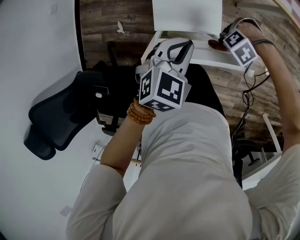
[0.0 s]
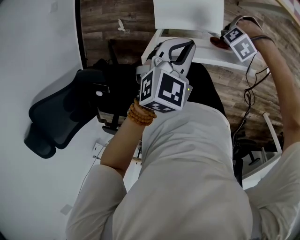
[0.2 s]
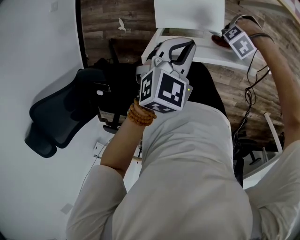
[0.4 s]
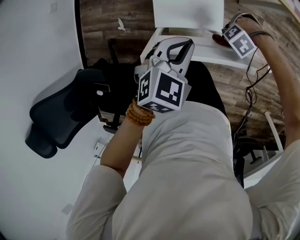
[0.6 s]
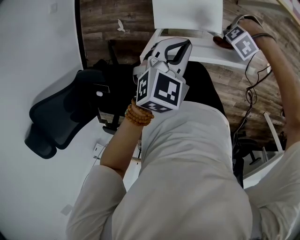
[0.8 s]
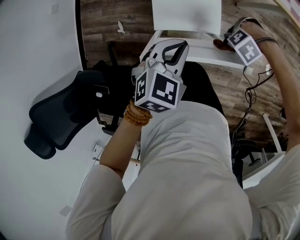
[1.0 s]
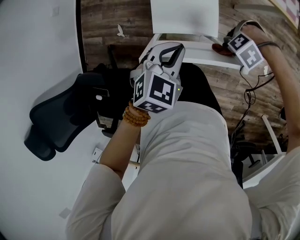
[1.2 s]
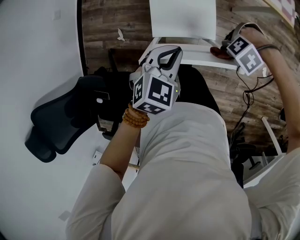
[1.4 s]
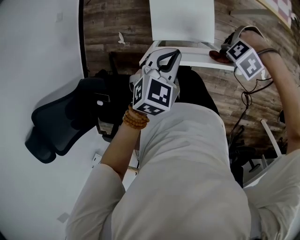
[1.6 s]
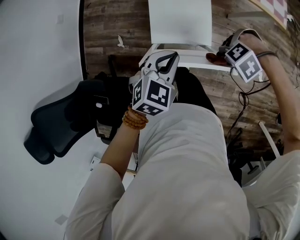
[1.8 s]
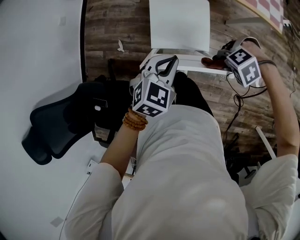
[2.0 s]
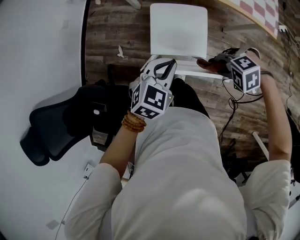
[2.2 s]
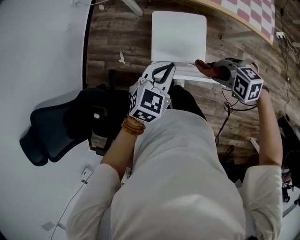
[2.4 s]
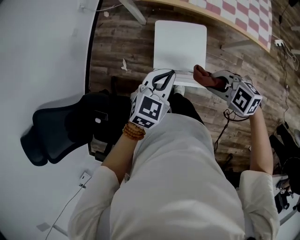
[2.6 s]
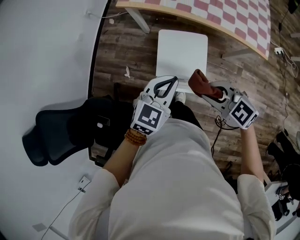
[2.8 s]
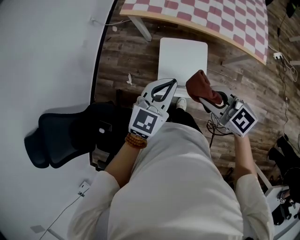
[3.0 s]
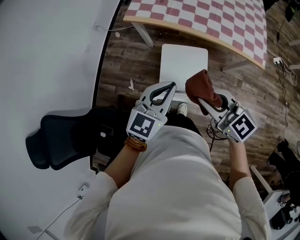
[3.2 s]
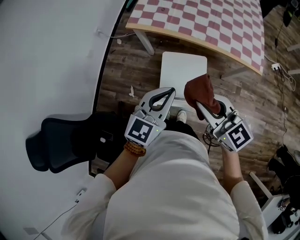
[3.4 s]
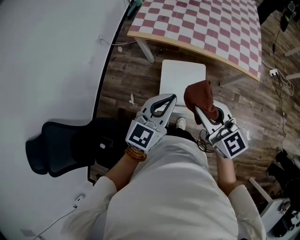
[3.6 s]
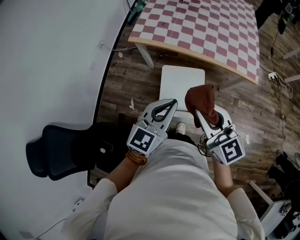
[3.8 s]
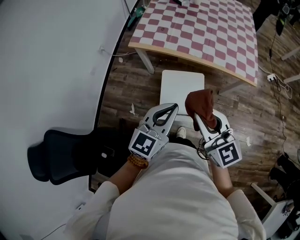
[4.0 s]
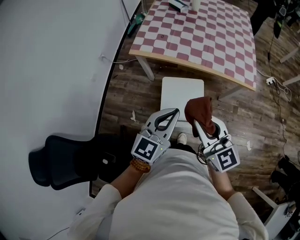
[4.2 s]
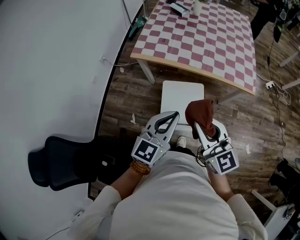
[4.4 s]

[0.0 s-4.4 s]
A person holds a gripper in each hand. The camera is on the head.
0.0 to 1.4 s: The right gripper is displaced upward by roughly 5 cm.
1.4 to 3.0 s: The left gripper is displaced upward by some 20 cm, and rotates approximately 30 degrees; the right gripper heads upward, covering roughly 30 cm, and angles its fingers upward, by some 40 degrees.
3.0 to 4.4 s: The grippers both shift upward by some 10 cm. The right gripper changes its angle by about 40 degrees.

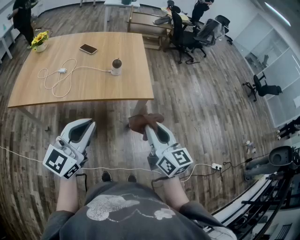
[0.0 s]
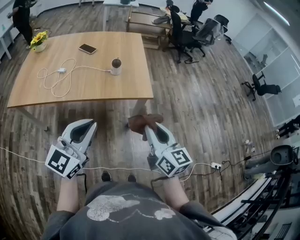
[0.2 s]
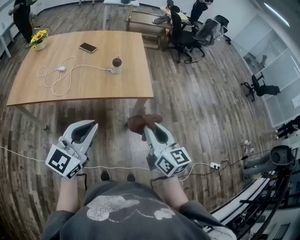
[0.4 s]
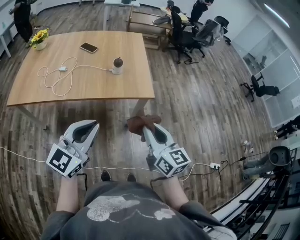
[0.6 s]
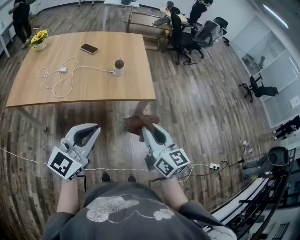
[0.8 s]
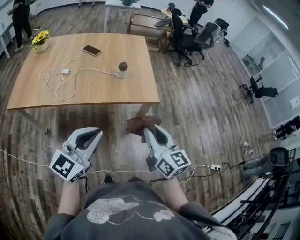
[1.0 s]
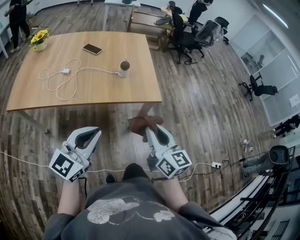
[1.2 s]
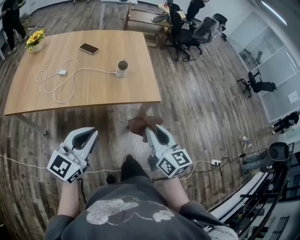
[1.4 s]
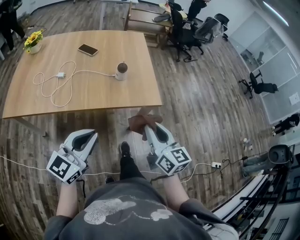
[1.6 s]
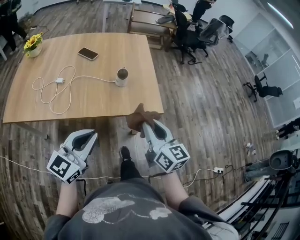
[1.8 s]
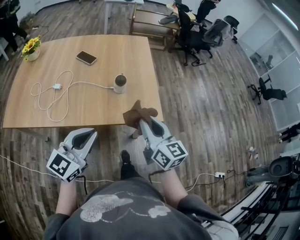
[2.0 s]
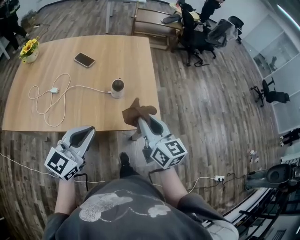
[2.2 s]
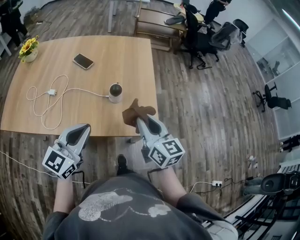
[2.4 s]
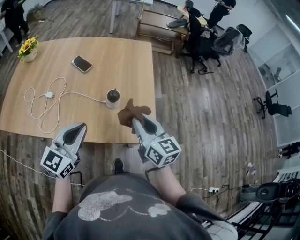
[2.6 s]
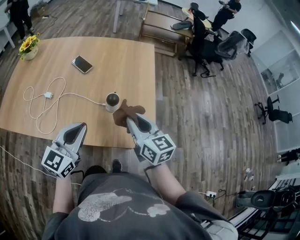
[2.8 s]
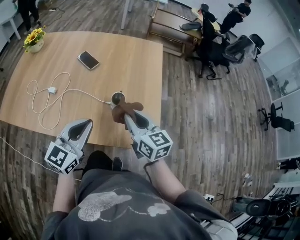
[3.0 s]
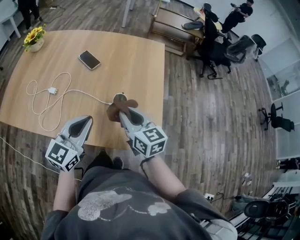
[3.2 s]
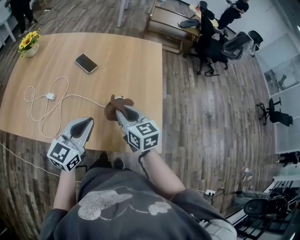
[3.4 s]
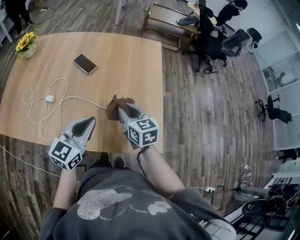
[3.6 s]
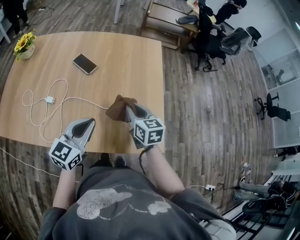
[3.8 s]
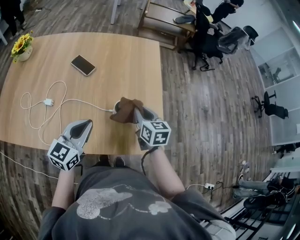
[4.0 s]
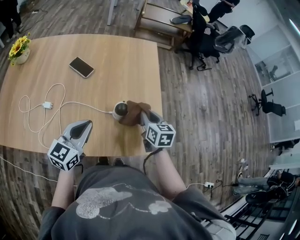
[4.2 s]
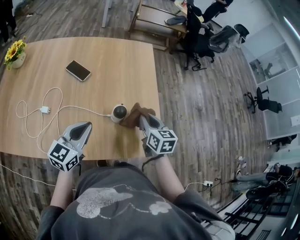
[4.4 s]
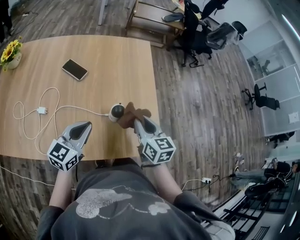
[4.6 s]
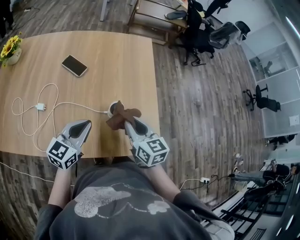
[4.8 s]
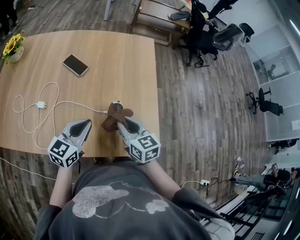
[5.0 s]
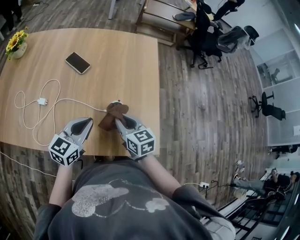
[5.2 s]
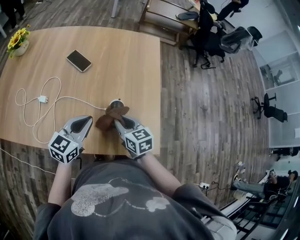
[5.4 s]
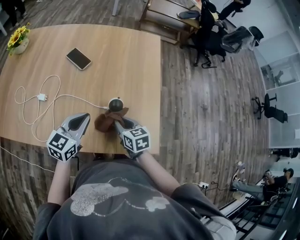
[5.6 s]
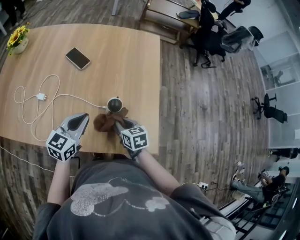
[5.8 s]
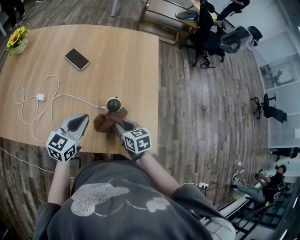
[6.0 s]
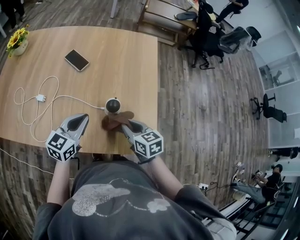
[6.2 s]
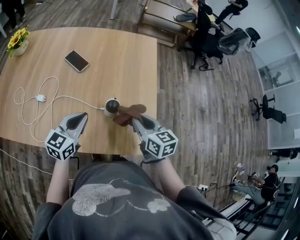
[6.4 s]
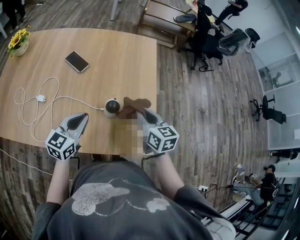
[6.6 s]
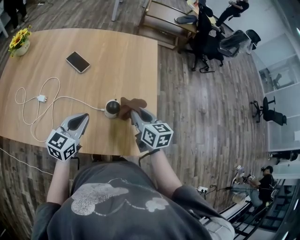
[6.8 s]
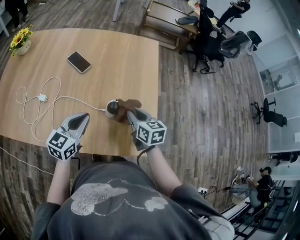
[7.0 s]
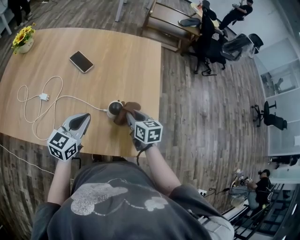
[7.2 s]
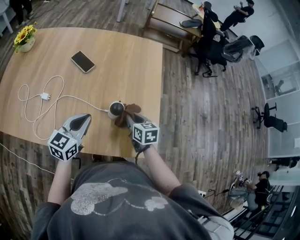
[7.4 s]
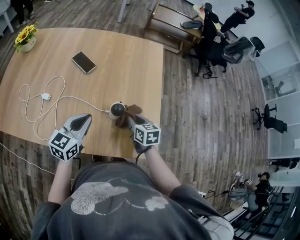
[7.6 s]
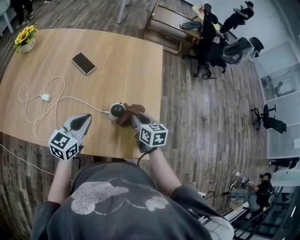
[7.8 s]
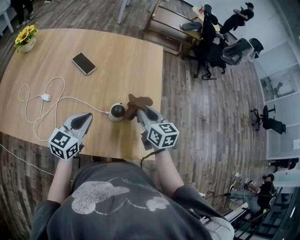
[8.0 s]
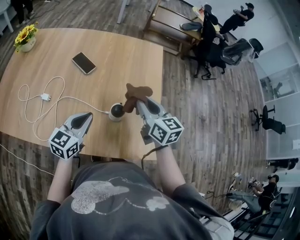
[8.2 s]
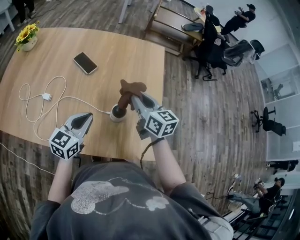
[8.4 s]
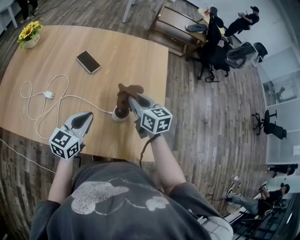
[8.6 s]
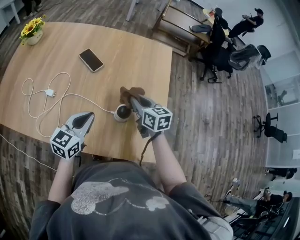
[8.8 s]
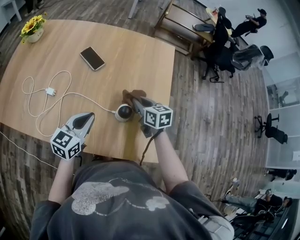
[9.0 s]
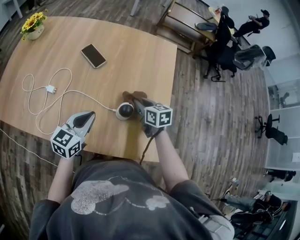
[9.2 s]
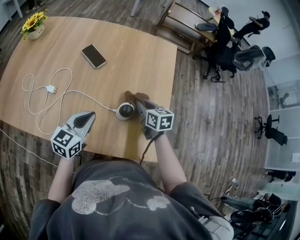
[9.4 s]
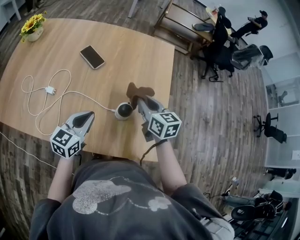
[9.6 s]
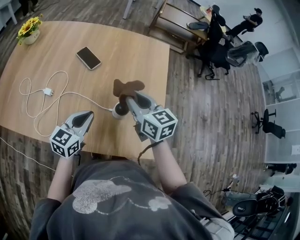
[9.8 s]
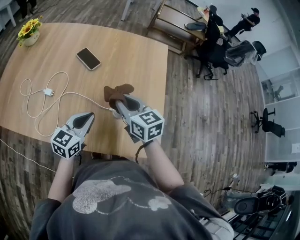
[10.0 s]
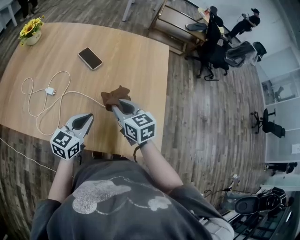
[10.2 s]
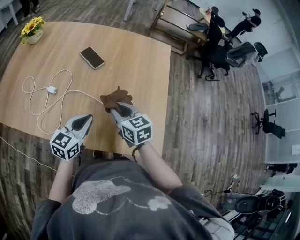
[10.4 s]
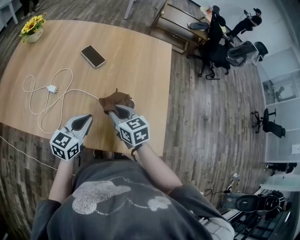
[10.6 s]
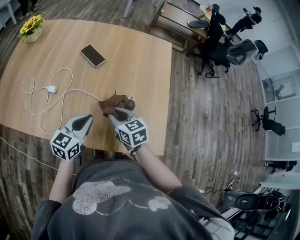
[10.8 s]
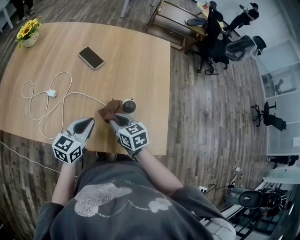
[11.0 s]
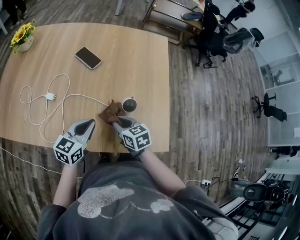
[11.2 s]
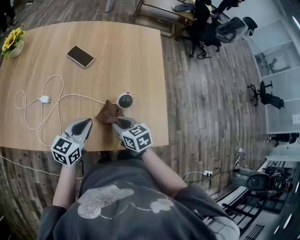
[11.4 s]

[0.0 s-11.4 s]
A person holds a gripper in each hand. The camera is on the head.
0.0 to 1.4 s: The two grippers go some 5 cm to the left.
1.4 to 2.8 s: Both grippers travel together forward, about 30 cm.
2.8 to 4.2 s: The left gripper moves forward and downward, some 10 cm; the right gripper goes about 15 cm downward and forward, travels to the left and back again, some 10 cm each way, and turns by some 30 degrees.
4.2 to 5.6 s: The right gripper shifts about 10 cm to the left, downward and backward, and rotates some 20 degrees.
5.6 to 7.2 s: The right gripper is displaced forward and to the right by about 5 cm, and travels upward and back again, some 10 cm each way.
7.2 to 8.6 s: The right gripper goes roughly 10 cm upward and forward.
8.6 to 10.0 s: The right gripper shifts some 5 cm to the left, and reaches roughly 10 cm downward, then returns.
10.0 to 11.4 s: The left gripper changes place by about 5 cm; the right gripper shifts about 15 cm downward and backward.

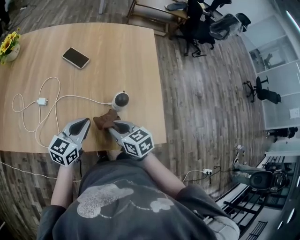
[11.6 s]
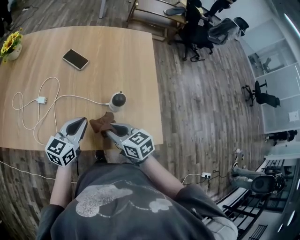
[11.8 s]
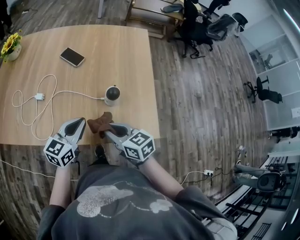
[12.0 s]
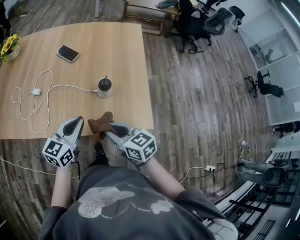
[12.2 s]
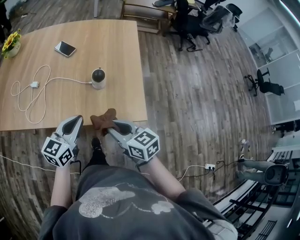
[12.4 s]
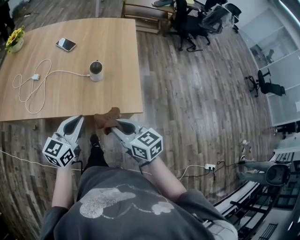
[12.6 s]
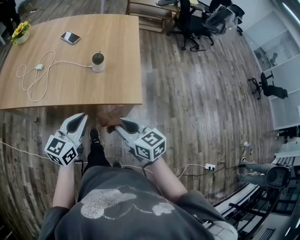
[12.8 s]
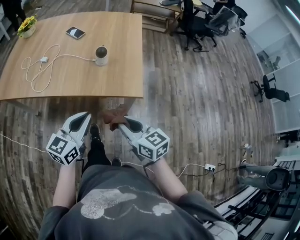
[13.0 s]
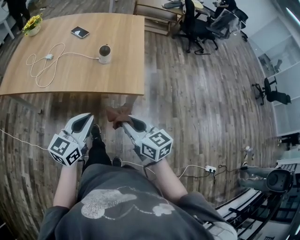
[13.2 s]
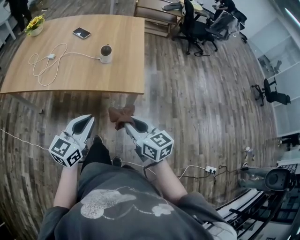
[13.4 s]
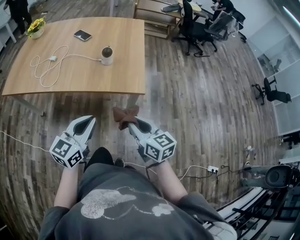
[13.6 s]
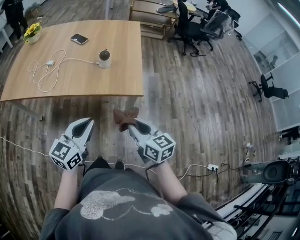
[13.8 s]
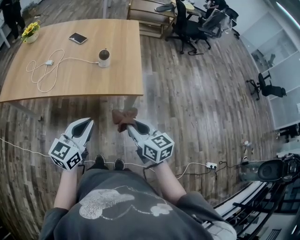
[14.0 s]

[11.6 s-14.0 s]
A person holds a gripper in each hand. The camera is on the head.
11.6 to 12.8 s: Both grippers move backward and to the right, some 25 cm.
12.8 to 14.0 s: Both grippers move backward, roughly 10 cm.

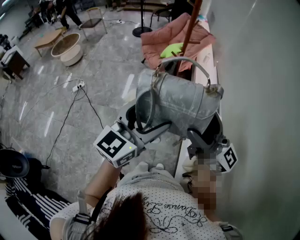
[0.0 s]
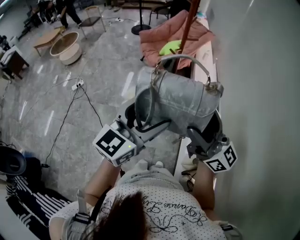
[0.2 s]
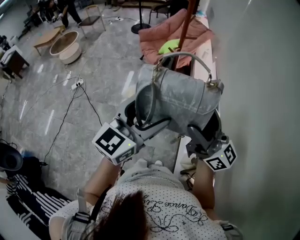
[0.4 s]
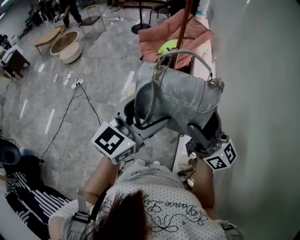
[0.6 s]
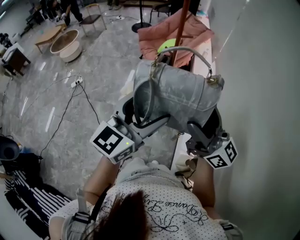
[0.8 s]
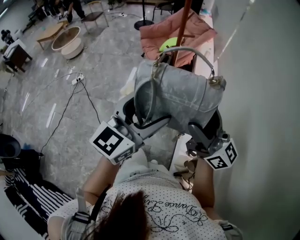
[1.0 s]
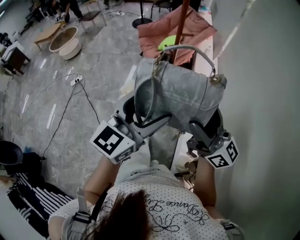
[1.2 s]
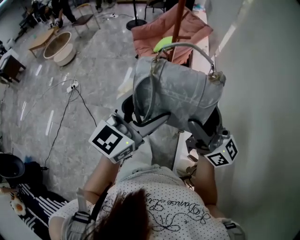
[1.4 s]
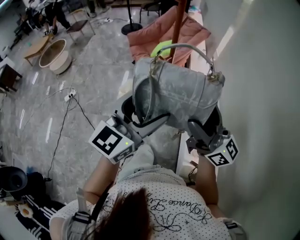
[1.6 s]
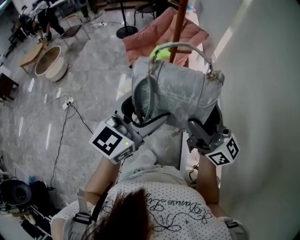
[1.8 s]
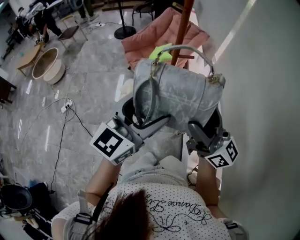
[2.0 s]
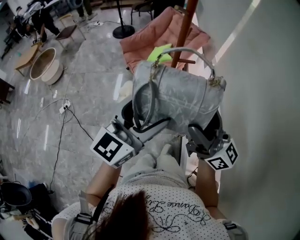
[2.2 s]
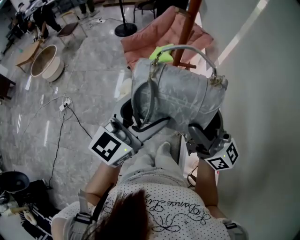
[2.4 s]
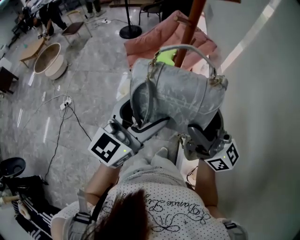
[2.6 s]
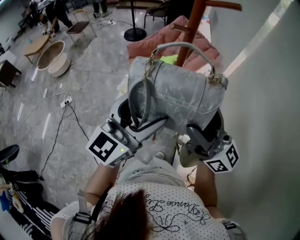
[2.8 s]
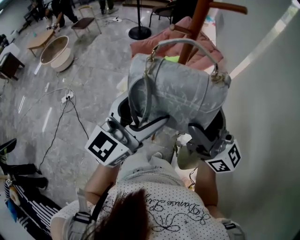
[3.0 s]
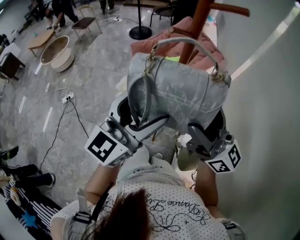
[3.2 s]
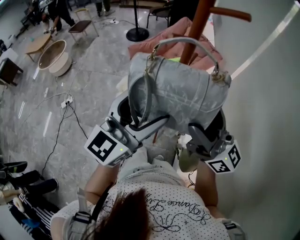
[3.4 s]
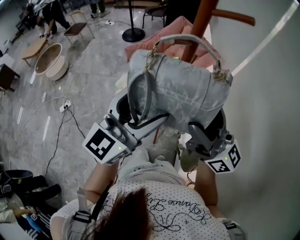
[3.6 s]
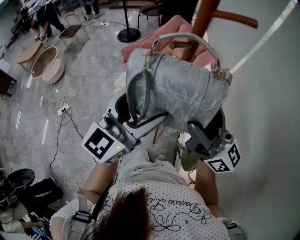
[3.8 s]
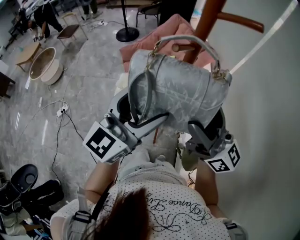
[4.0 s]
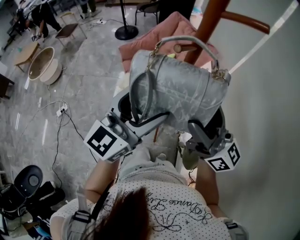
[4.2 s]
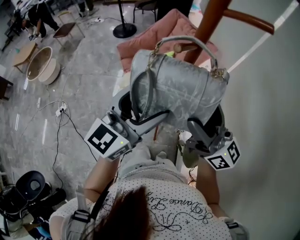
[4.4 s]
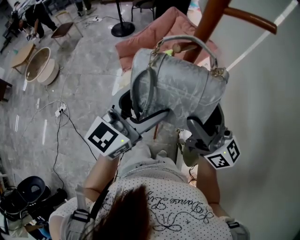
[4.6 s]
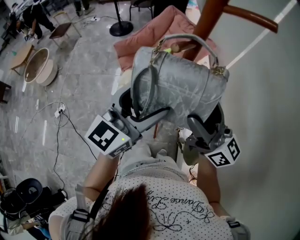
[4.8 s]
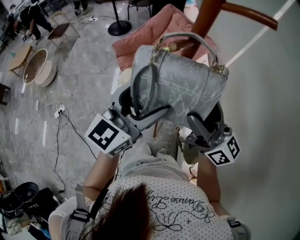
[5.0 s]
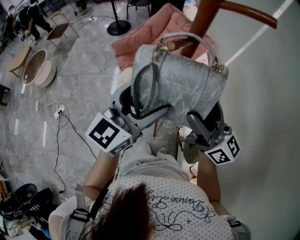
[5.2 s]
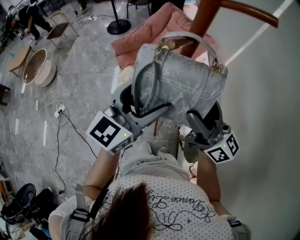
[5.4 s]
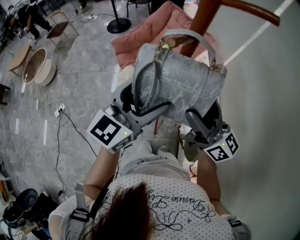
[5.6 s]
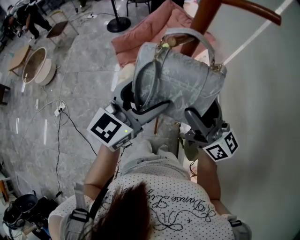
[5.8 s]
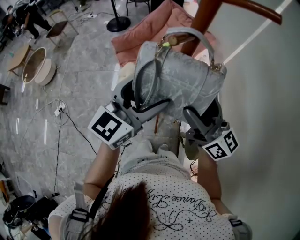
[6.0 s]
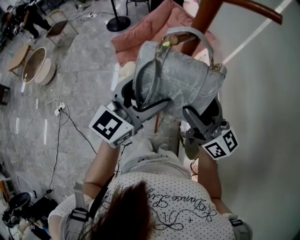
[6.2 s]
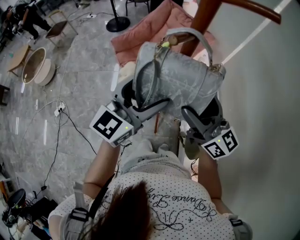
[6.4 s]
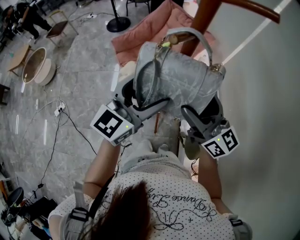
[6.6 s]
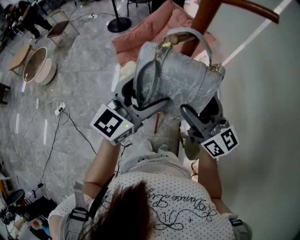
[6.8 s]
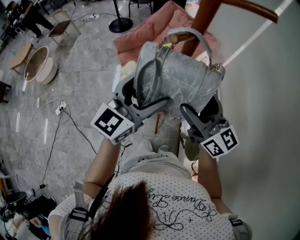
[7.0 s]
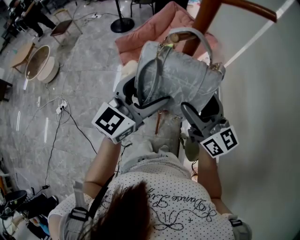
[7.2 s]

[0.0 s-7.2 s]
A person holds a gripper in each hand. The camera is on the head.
0.0 to 1.4 s: Both grippers travel together forward and to the right, approximately 15 cm.
1.4 to 2.8 s: Both grippers move forward, roughly 25 cm.
2.8 to 4.4 s: The grippers both shift forward by roughly 15 cm.
4.4 to 5.8 s: The grippers make only small movements.
5.8 to 7.2 s: The grippers move only a little.
